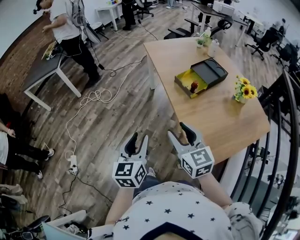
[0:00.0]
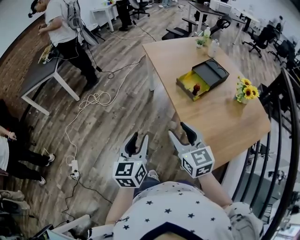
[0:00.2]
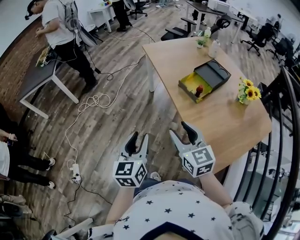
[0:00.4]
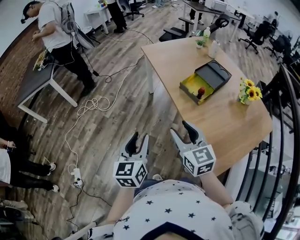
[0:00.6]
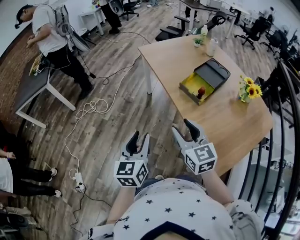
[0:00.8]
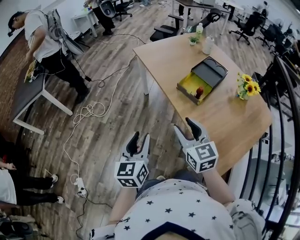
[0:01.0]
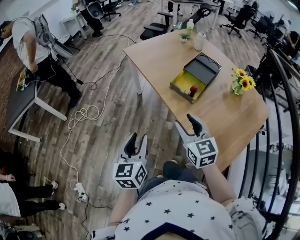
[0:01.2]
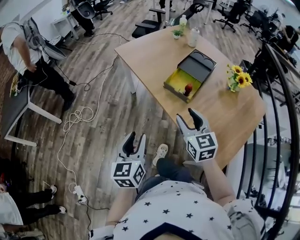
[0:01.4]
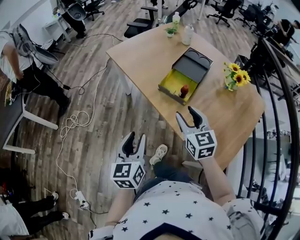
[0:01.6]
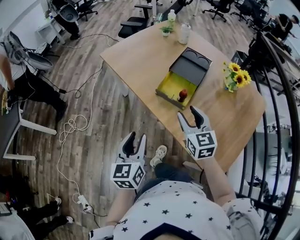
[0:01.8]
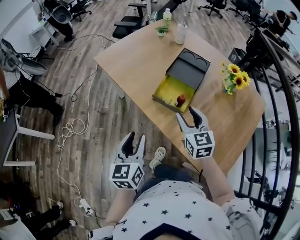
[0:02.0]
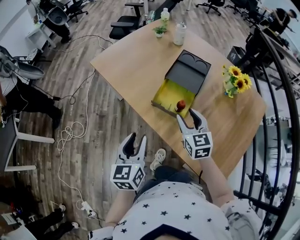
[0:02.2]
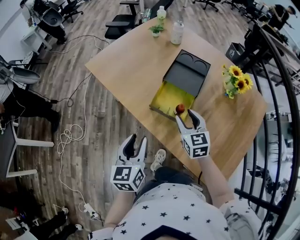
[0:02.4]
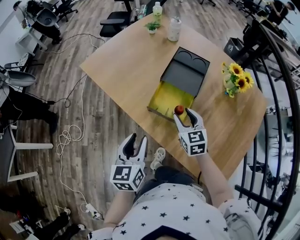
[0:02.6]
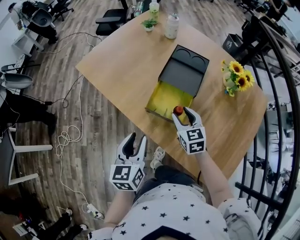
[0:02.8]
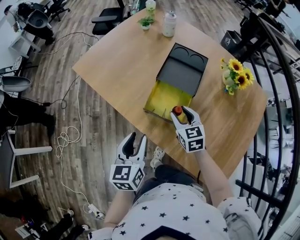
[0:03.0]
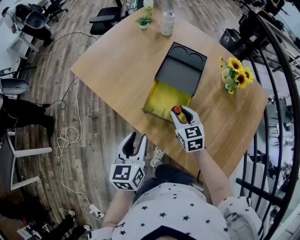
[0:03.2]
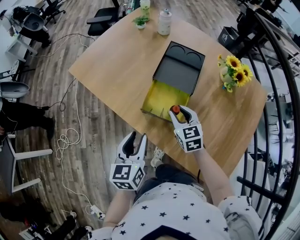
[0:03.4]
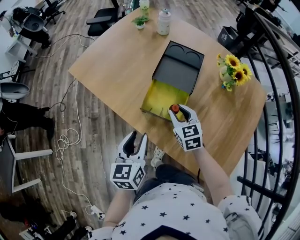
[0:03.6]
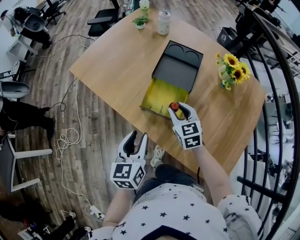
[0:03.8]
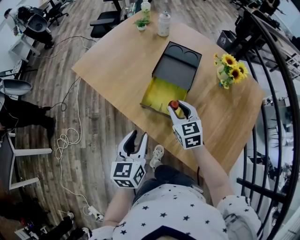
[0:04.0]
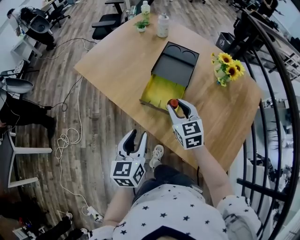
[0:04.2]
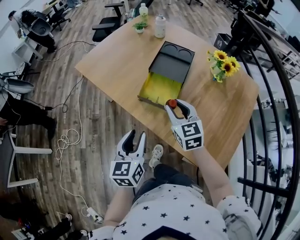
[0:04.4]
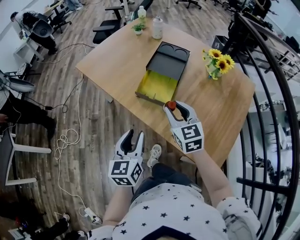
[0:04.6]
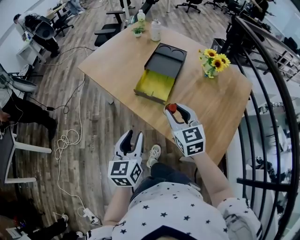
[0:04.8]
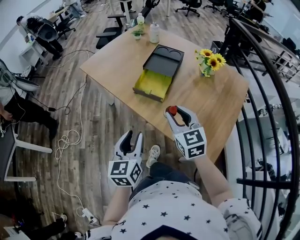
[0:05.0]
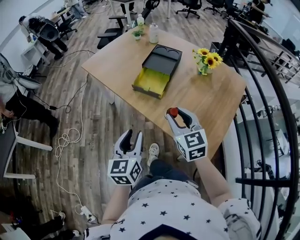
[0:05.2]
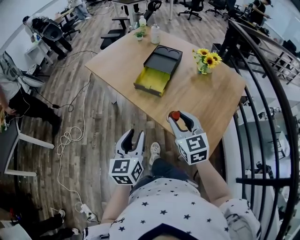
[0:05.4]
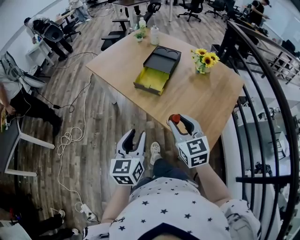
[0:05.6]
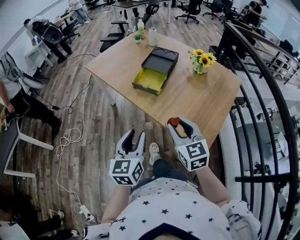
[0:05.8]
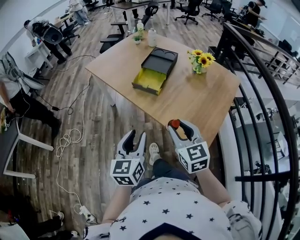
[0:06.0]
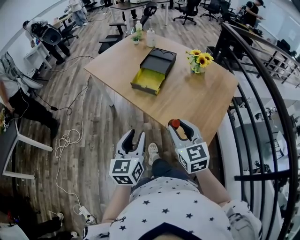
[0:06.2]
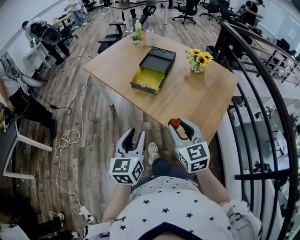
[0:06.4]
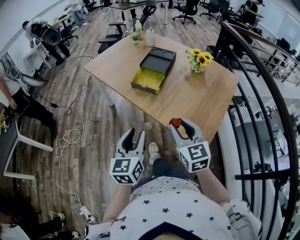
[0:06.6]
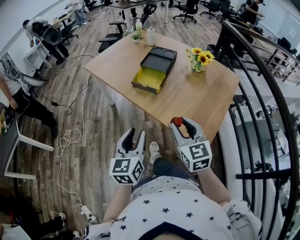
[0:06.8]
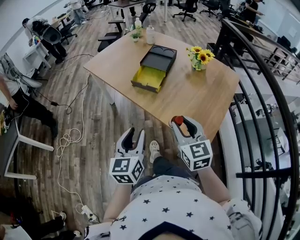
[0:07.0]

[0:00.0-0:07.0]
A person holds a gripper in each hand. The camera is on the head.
0:00.0 to 0:01.4: The grippers both shift forward by some 20 cm. The right gripper changes its angle by about 20 degrees.
0:01.4 to 0:02.8: The right gripper heads forward and downward, covering roughly 25 cm. The left gripper heads forward, covering about 25 cm.
0:02.8 to 0:04.2: The right gripper goes some 5 cm upward.
0:04.2 to 0:05.6: Both grippers travel together backward, about 25 cm.
0:05.6 to 0:07.0: The grippers stay close to where they were, moving slightly.

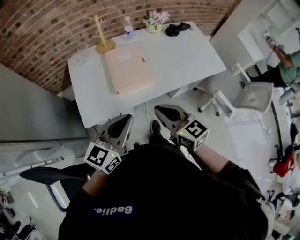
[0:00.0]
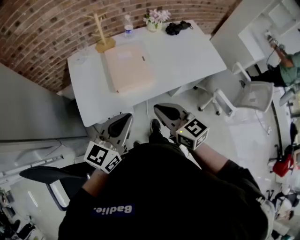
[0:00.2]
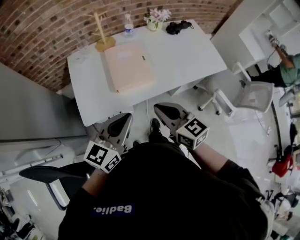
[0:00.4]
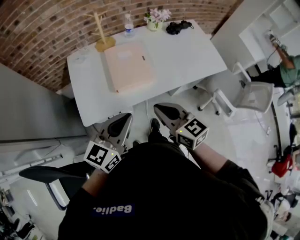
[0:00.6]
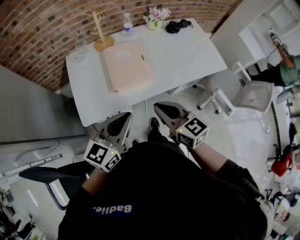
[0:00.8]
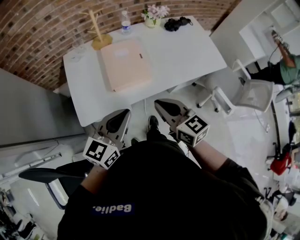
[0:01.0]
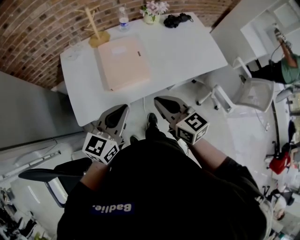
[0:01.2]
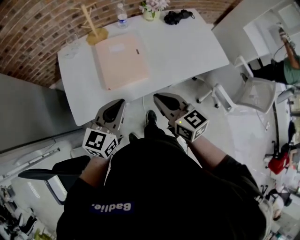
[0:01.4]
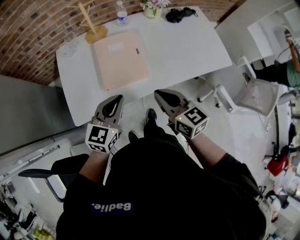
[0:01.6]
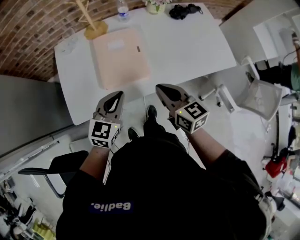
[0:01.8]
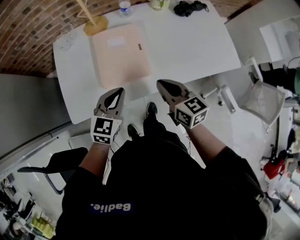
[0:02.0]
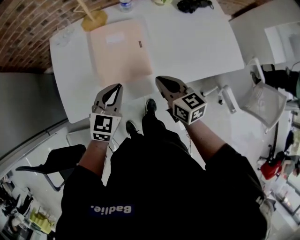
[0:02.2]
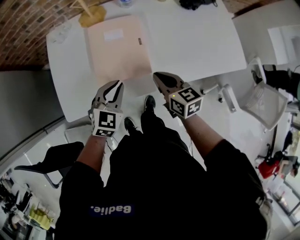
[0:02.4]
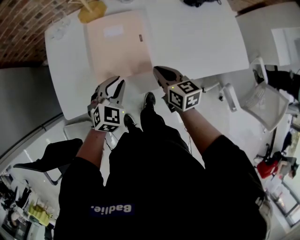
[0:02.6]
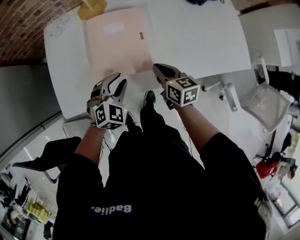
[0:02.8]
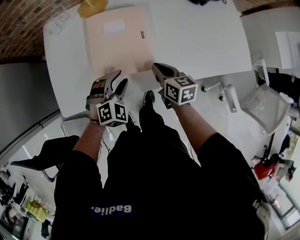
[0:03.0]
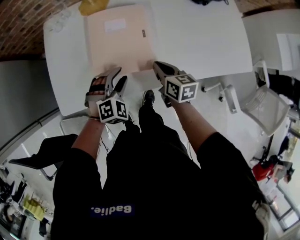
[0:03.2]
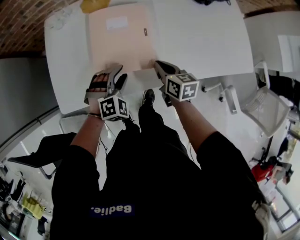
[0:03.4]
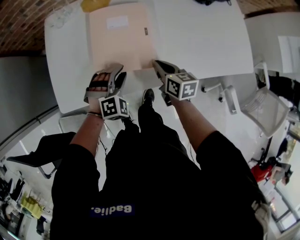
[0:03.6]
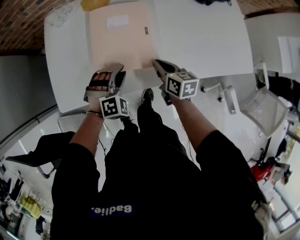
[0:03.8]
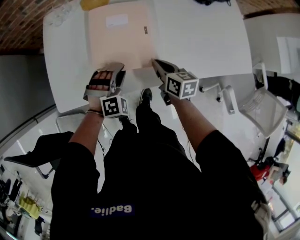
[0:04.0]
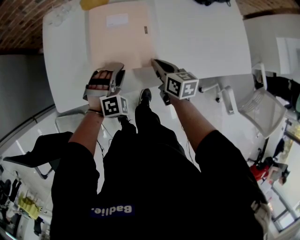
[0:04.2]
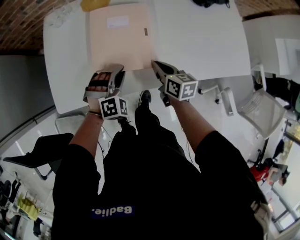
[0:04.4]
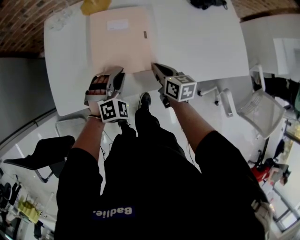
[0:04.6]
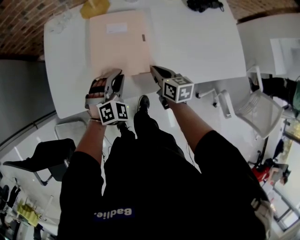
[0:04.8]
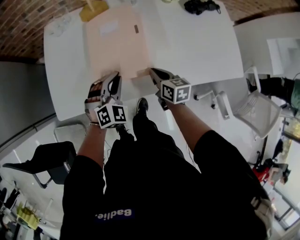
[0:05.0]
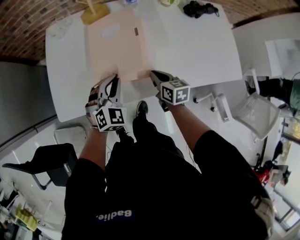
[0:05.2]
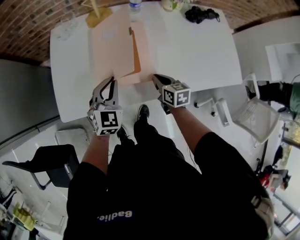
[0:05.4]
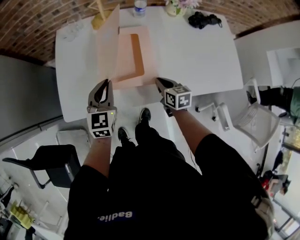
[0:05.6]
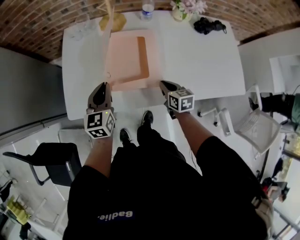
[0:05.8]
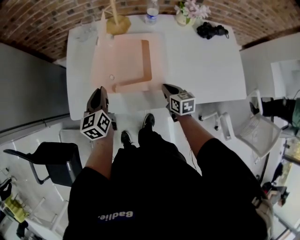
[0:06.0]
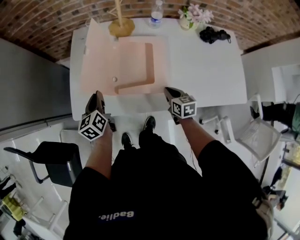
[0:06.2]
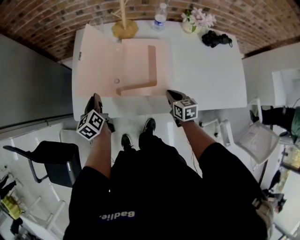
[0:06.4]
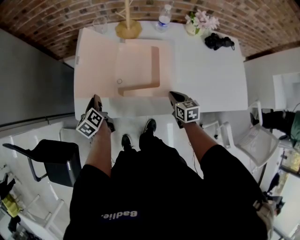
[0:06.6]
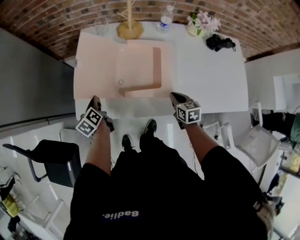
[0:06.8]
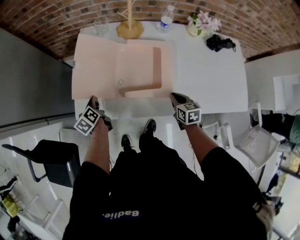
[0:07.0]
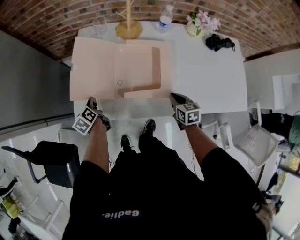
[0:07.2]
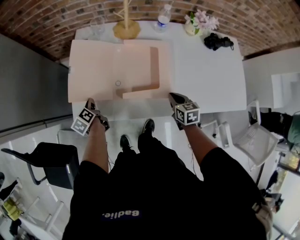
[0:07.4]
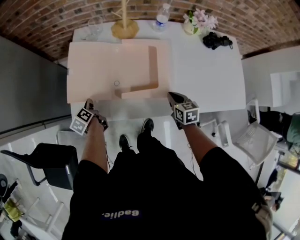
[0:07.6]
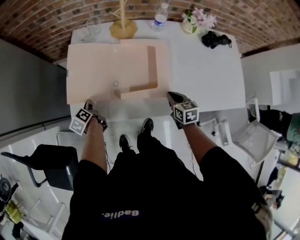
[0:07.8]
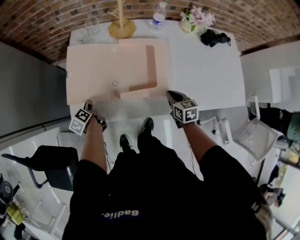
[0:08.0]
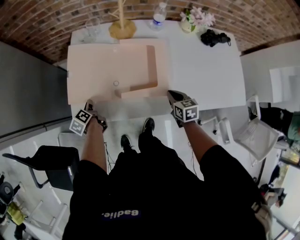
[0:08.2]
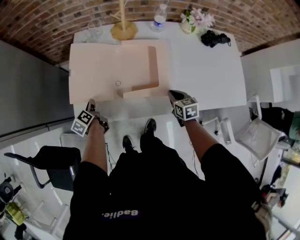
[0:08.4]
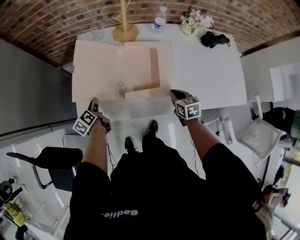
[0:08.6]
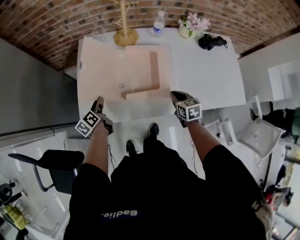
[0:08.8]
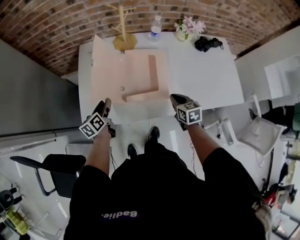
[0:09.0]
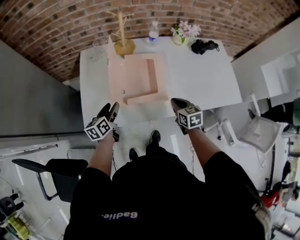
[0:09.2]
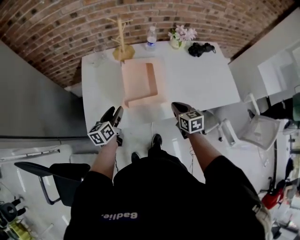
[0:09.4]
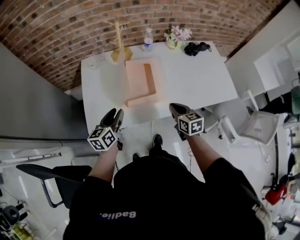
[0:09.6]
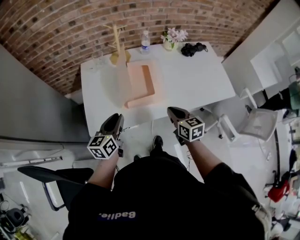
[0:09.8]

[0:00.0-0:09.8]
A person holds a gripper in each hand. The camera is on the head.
0:00.0 to 0:01.4: The left gripper goes about 10 cm forward and downward, while the right gripper is displaced forward by roughly 10 cm.
0:01.4 to 0:02.8: Both grippers travel together downward and forward, roughly 25 cm. The left gripper tilts its fingers about 30 degrees downward, and opens. Meanwhile the right gripper swivels some 20 degrees.
0:02.8 to 0:04.2: The left gripper turns by about 30 degrees.
0:04.2 to 0:05.6: The left gripper moves upward and to the left, some 15 cm, and rotates around the line of its fingers by roughly 70 degrees, counterclockwise from behind.
0:05.6 to 0:07.0: The left gripper goes approximately 25 cm to the left and downward, and rolls counterclockwise, seen from behind, by roughly 50 degrees.
0:07.0 to 0:08.4: The grippers make only small movements.
0:08.4 to 0:09.8: The right gripper is displaced upward and backward by some 20 cm; the left gripper shifts roughly 30 cm upward, to the right and backward, turns by some 60 degrees, and opens and closes again.

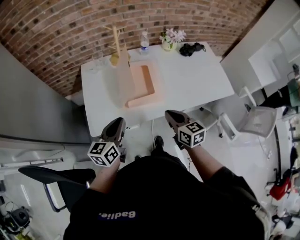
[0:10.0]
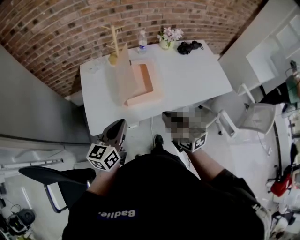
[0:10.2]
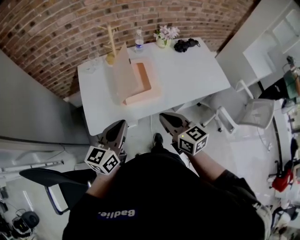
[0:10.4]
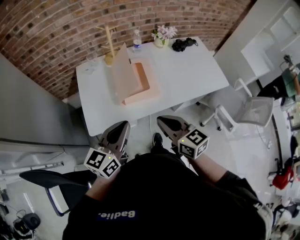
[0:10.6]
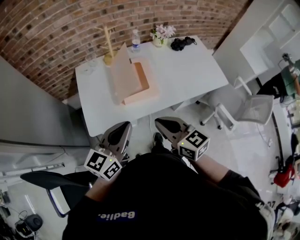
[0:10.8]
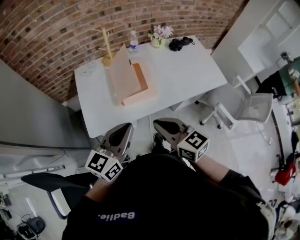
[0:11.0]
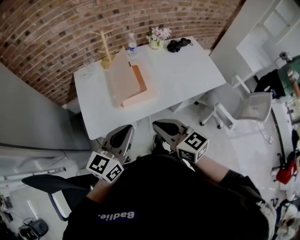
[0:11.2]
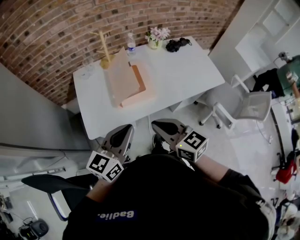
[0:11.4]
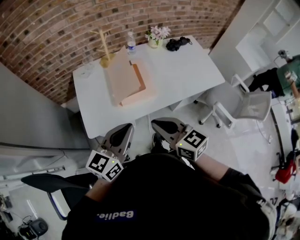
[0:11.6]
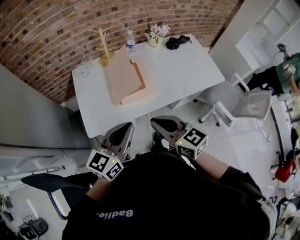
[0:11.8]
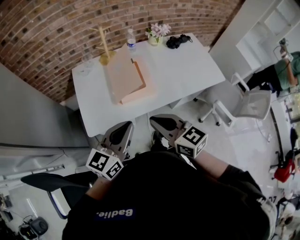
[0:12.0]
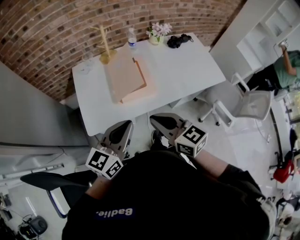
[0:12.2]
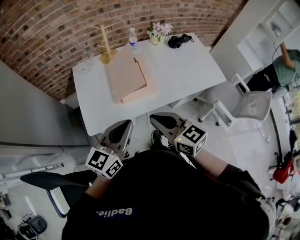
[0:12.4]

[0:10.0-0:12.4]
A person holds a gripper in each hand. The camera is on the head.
0:10.0 to 0:11.2: The right gripper heads upward, backward and to the left, covering about 15 cm. Meanwhile the left gripper goes approximately 15 cm upward, backward and to the right, and rotates about 20 degrees.
0:11.2 to 0:12.4: There are only small adjustments of the grippers.

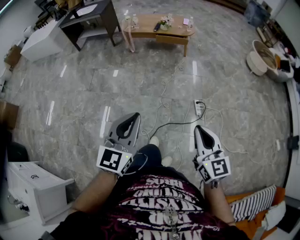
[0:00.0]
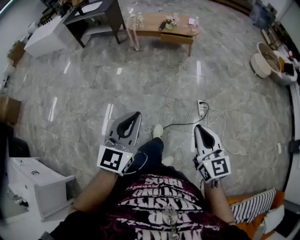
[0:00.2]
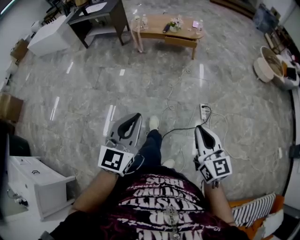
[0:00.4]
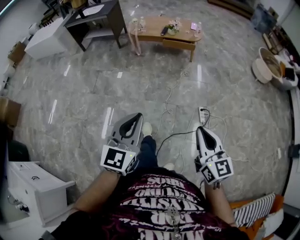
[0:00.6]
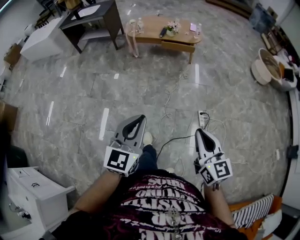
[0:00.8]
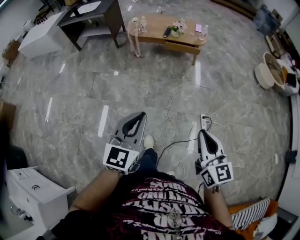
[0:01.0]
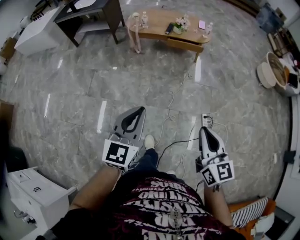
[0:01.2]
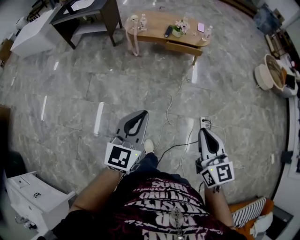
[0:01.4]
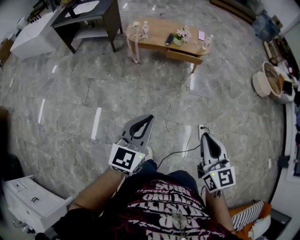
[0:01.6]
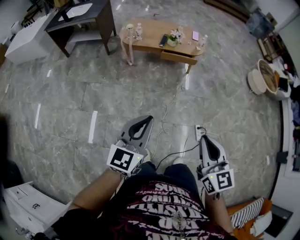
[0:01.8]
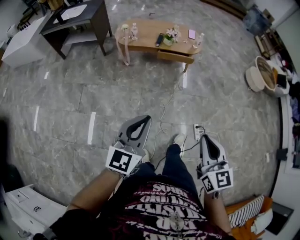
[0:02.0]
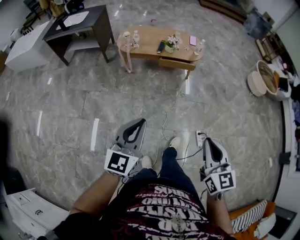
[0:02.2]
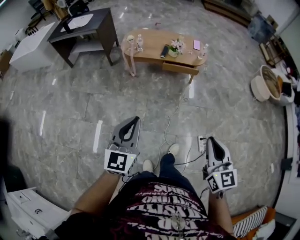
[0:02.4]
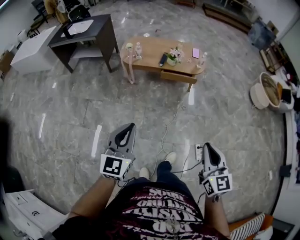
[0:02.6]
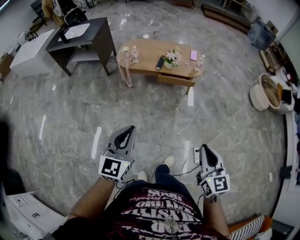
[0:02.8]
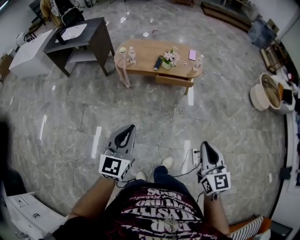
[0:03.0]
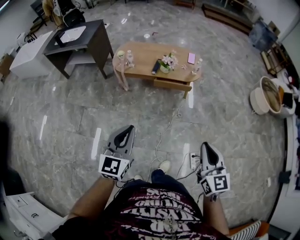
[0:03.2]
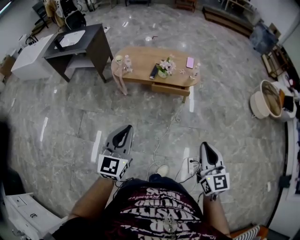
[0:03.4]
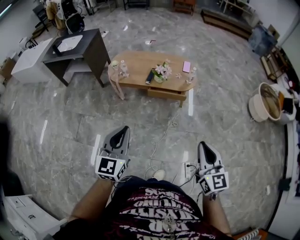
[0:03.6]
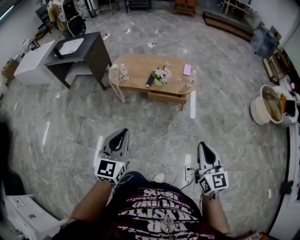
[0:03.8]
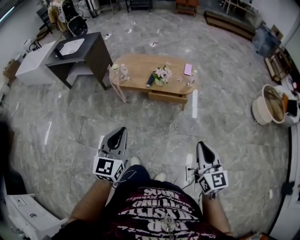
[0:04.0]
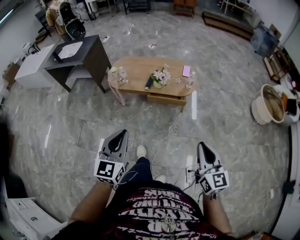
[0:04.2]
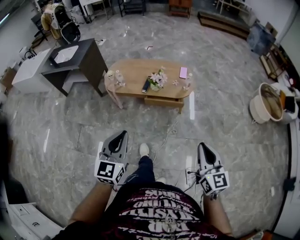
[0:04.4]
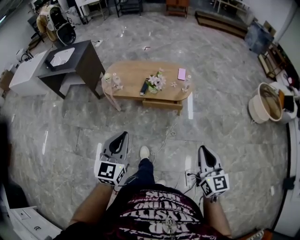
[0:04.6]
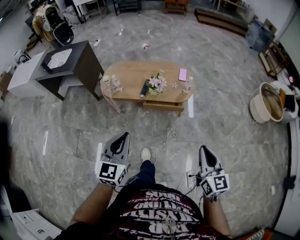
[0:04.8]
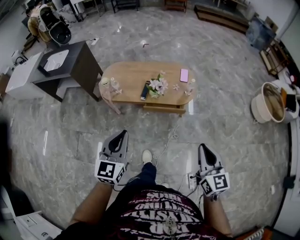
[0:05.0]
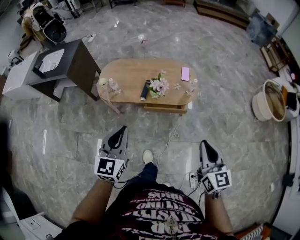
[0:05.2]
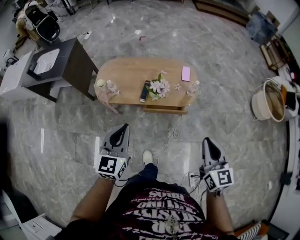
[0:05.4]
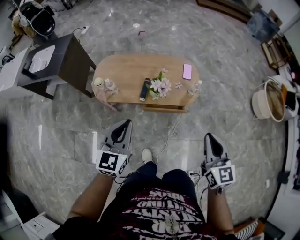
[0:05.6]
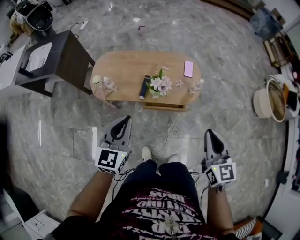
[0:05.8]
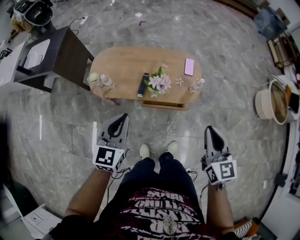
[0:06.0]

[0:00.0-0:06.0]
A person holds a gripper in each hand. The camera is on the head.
0:00.0 to 0:01.6: The left gripper shifts approximately 35 cm forward; the right gripper shifts about 35 cm forward and to the left.
0:01.6 to 0:03.0: The right gripper is displaced forward and to the right by about 20 cm. The left gripper moves forward, some 15 cm.
0:03.0 to 0:04.4: The grippers both shift forward and to the right by approximately 20 cm.
0:04.4 to 0:06.0: The grippers both shift forward by approximately 35 cm.